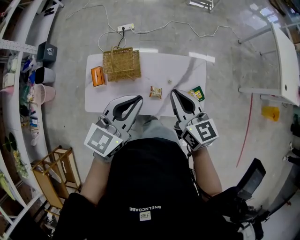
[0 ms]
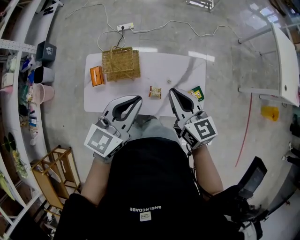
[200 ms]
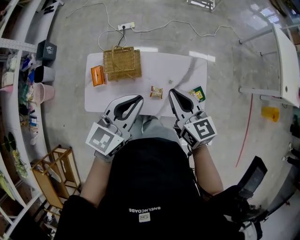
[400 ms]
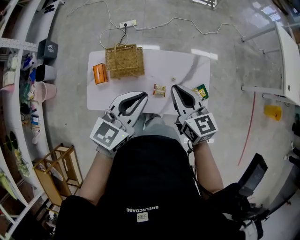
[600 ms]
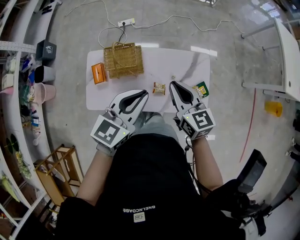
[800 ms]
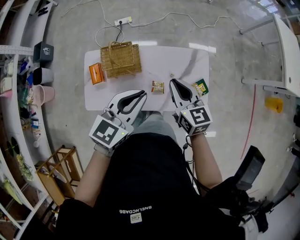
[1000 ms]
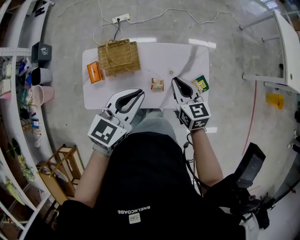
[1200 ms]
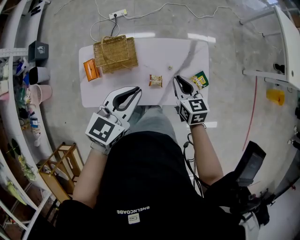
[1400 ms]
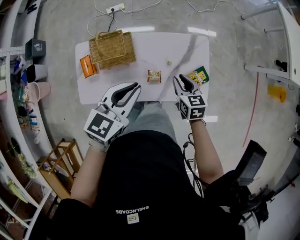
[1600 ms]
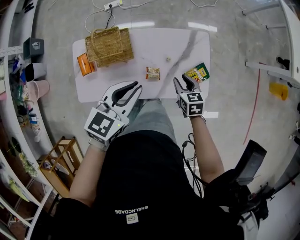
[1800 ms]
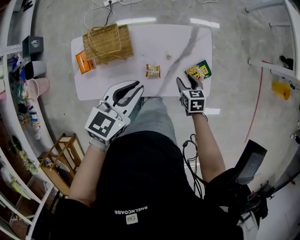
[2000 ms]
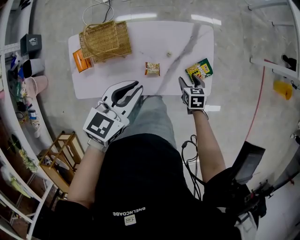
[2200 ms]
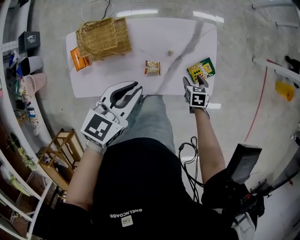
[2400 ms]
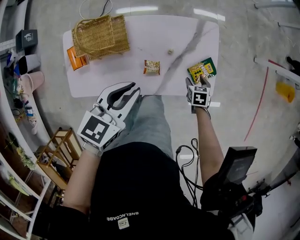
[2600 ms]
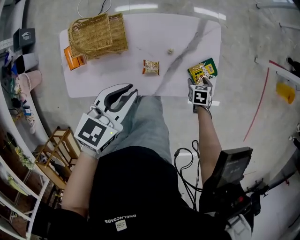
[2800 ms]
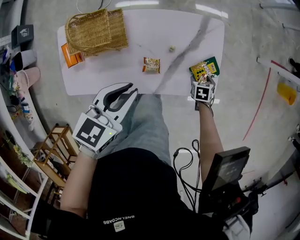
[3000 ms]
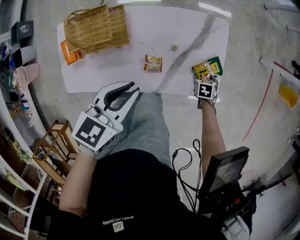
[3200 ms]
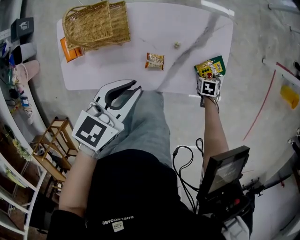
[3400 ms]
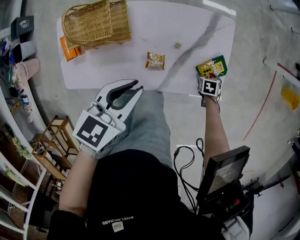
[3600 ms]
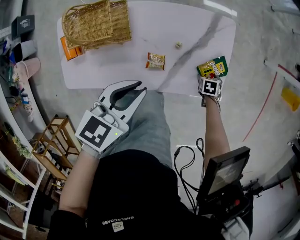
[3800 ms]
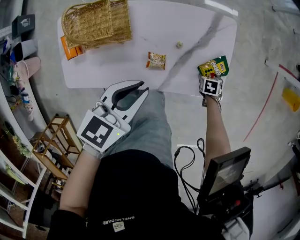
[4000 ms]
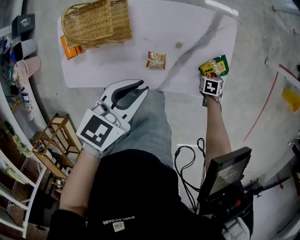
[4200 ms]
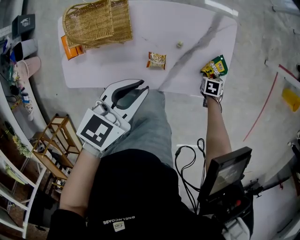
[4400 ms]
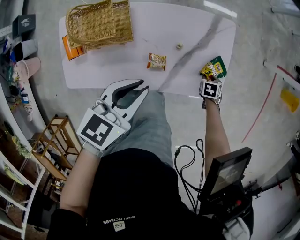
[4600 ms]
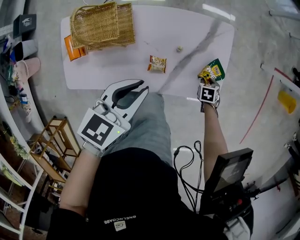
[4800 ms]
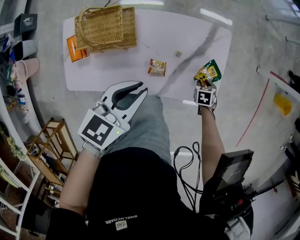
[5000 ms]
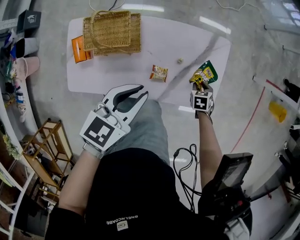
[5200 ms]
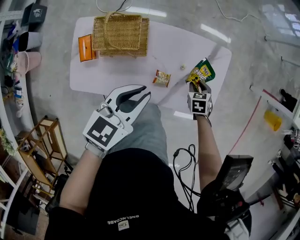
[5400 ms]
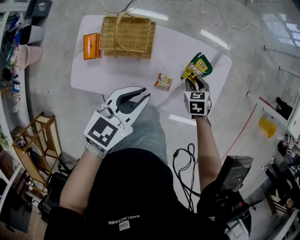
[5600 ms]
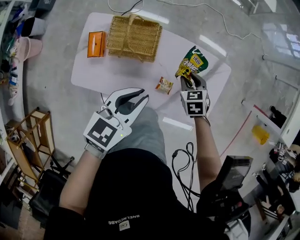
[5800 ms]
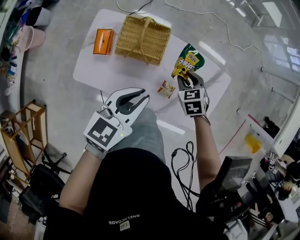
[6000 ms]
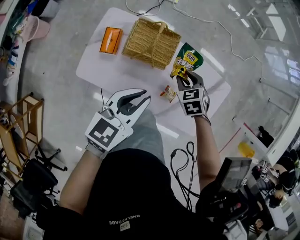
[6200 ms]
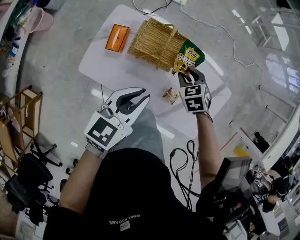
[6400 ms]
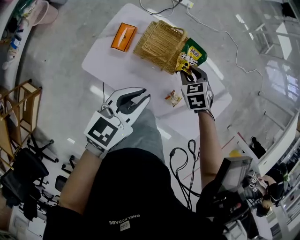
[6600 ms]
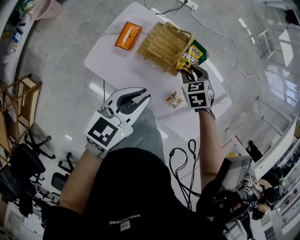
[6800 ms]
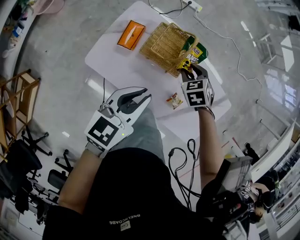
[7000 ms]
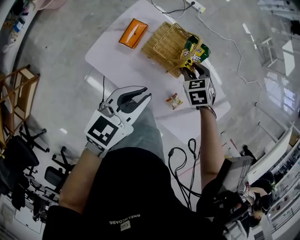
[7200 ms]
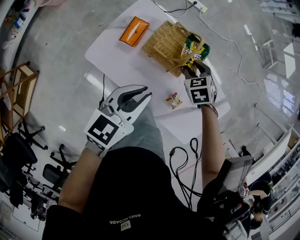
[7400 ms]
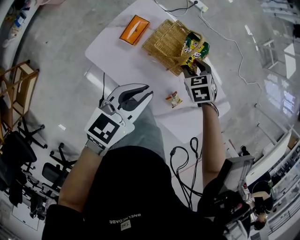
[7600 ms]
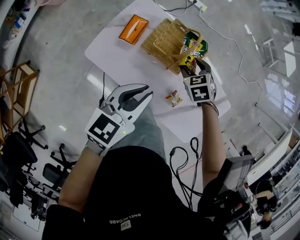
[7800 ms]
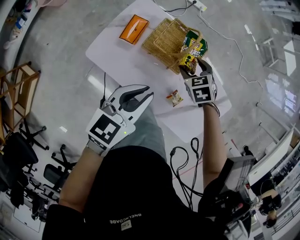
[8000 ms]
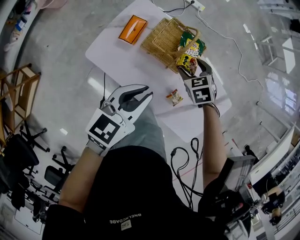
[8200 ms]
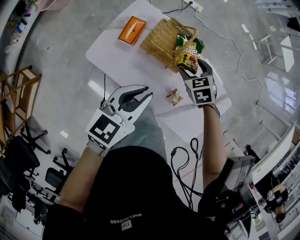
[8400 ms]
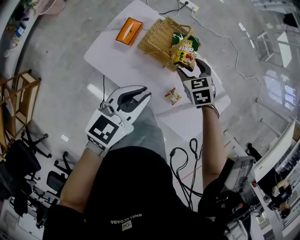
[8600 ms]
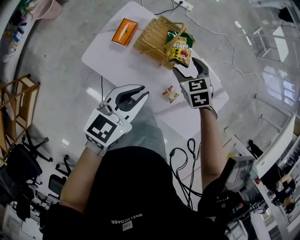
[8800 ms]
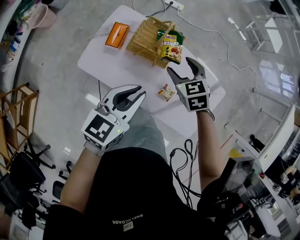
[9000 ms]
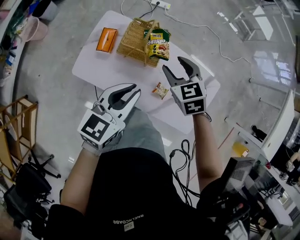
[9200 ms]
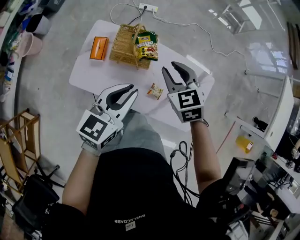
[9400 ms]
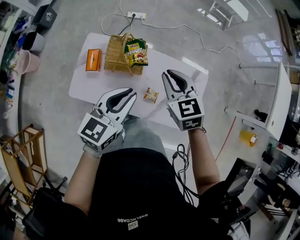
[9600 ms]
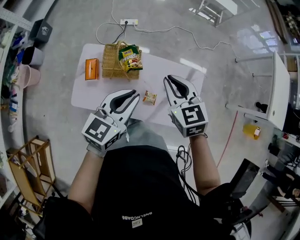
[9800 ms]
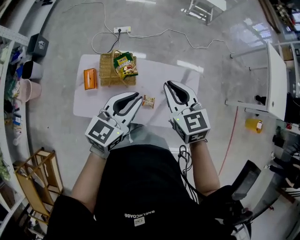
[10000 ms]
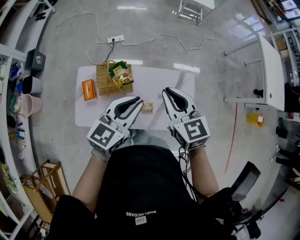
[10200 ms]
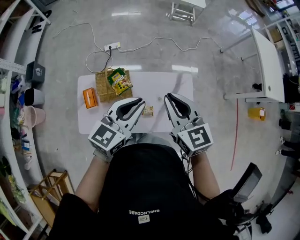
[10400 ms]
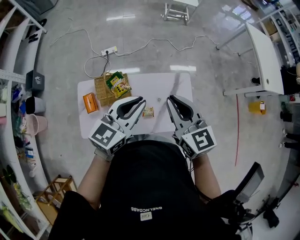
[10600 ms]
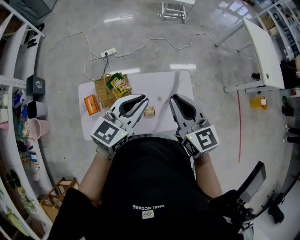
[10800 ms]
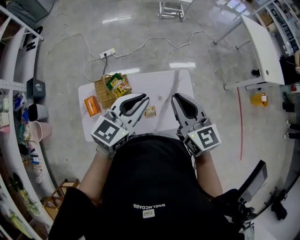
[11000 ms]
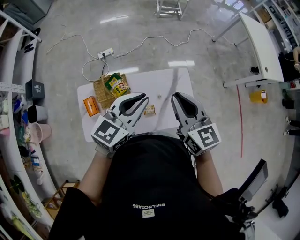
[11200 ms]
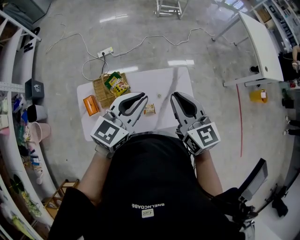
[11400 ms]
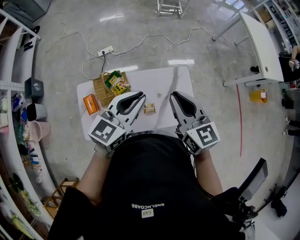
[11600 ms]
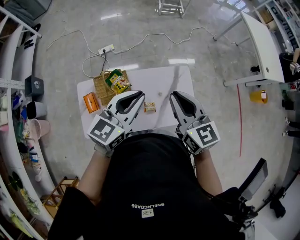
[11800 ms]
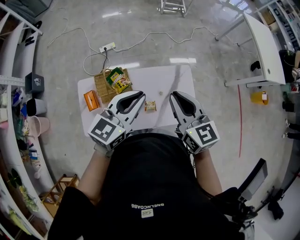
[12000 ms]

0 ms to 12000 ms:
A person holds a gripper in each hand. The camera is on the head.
0 ms to 1600 ms: The left gripper heads downward, covering approximately 10 cm. Meanwhile the right gripper is displaced downward by approximately 25 cm, and changes its angle by about 30 degrees.
1600 ms to 3000 ms: The right gripper is displaced downward by roughly 30 cm, points its fingers some 40 degrees further downward, and opens its fingers, while the left gripper is displaced downward by about 15 cm.
3000 ms to 4400 ms: The right gripper changes place by approximately 5 cm, and closes up.
4400 ms to 6000 ms: The right gripper changes place by roughly 40 cm, and twists approximately 40 degrees counterclockwise, seen from behind. Meanwhile the left gripper ends up roughly 15 cm from where it was, and swivels about 20 degrees.
6000 ms to 7600 ms: The left gripper moves to the left, approximately 10 cm; the right gripper travels to the left and forward by roughly 15 cm, and turns by approximately 20 degrees.
7600 ms to 9000 ms: The right gripper is displaced upward and backward by about 15 cm, and opens up; the left gripper shifts about 5 cm backward.
9000 ms to 10400 ms: The right gripper goes approximately 30 cm upward, tilts its fingers approximately 30 degrees upward, and closes up. The left gripper shifts about 15 cm upward, and changes its angle by about 30 degrees.
10400 ms to 12000 ms: The grippers stay close to where they were, moving slightly.

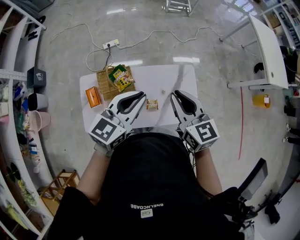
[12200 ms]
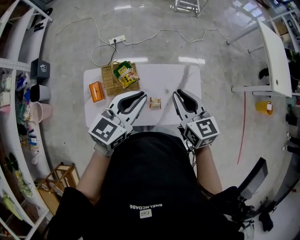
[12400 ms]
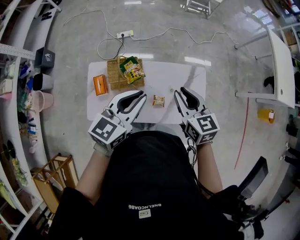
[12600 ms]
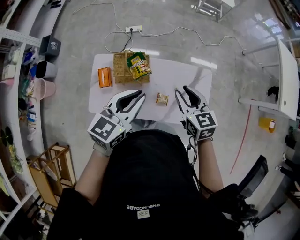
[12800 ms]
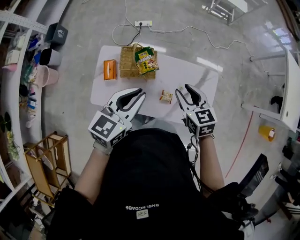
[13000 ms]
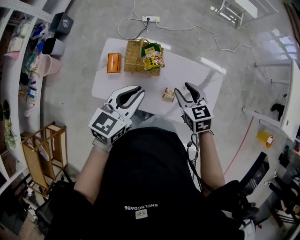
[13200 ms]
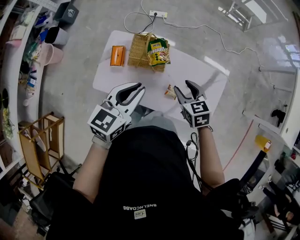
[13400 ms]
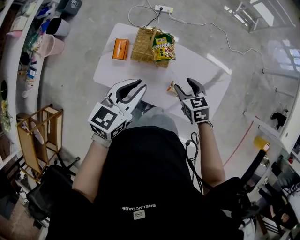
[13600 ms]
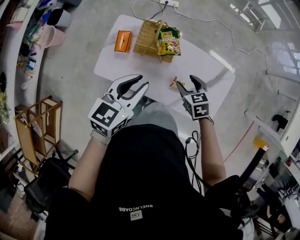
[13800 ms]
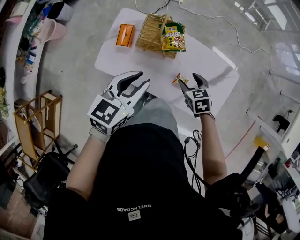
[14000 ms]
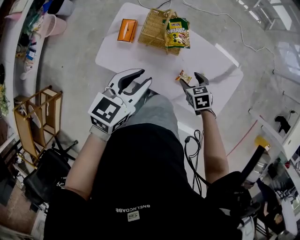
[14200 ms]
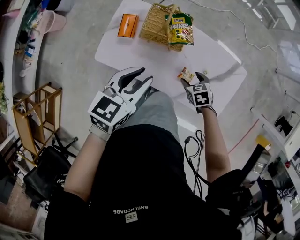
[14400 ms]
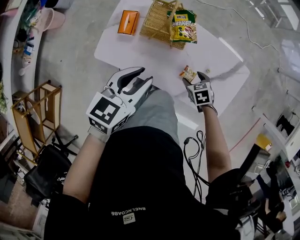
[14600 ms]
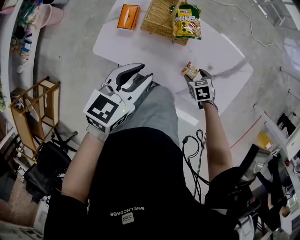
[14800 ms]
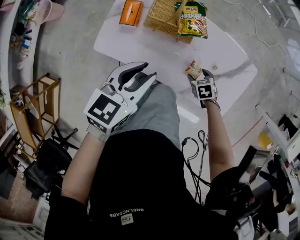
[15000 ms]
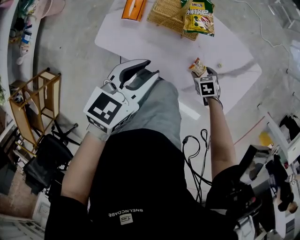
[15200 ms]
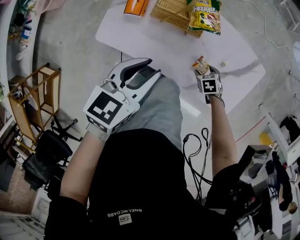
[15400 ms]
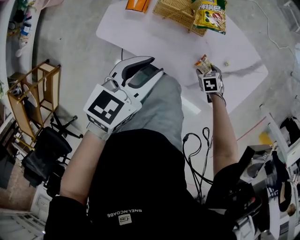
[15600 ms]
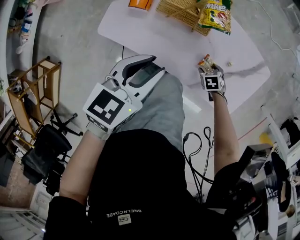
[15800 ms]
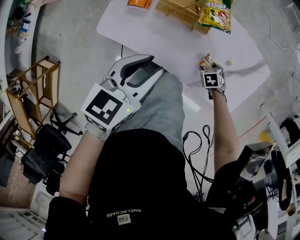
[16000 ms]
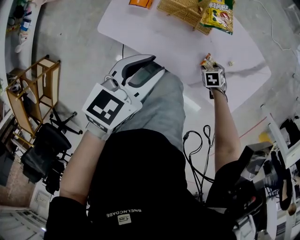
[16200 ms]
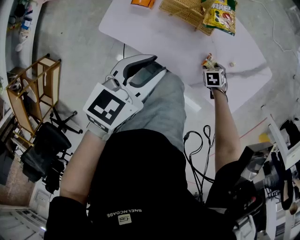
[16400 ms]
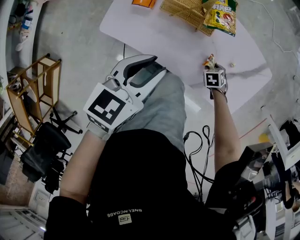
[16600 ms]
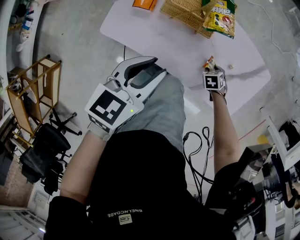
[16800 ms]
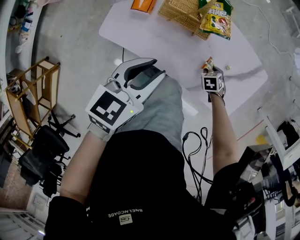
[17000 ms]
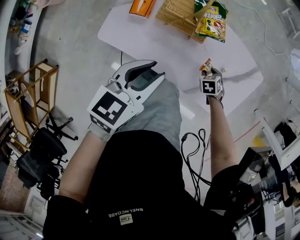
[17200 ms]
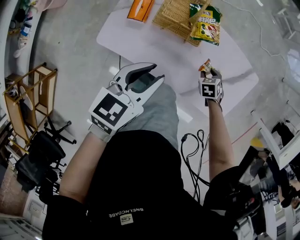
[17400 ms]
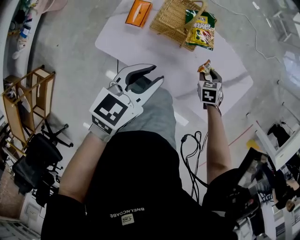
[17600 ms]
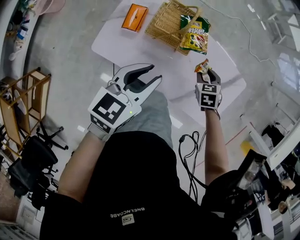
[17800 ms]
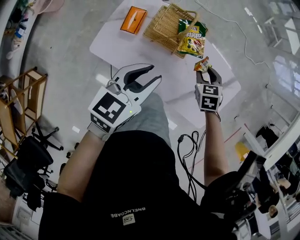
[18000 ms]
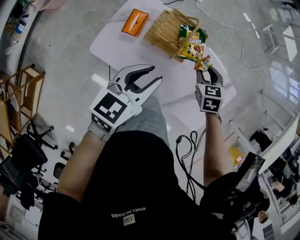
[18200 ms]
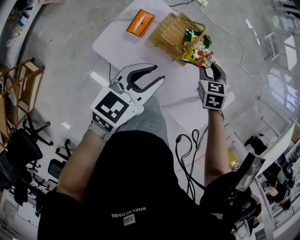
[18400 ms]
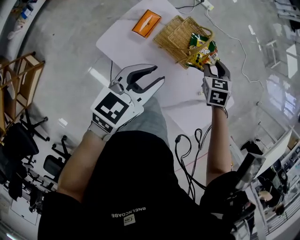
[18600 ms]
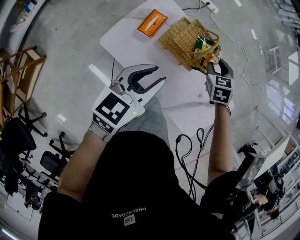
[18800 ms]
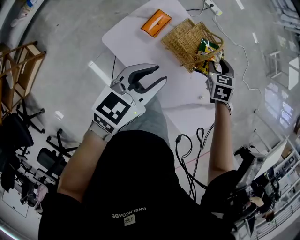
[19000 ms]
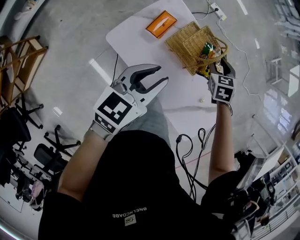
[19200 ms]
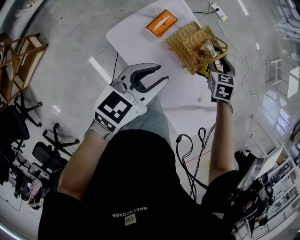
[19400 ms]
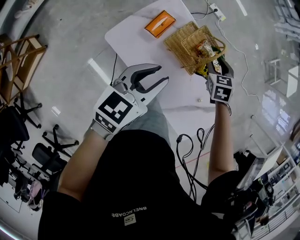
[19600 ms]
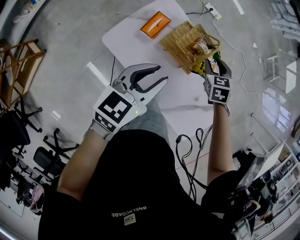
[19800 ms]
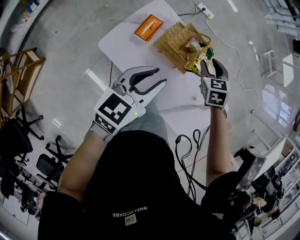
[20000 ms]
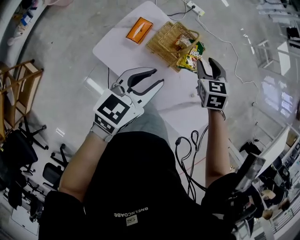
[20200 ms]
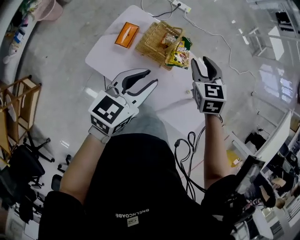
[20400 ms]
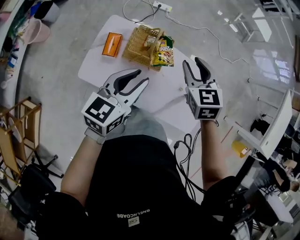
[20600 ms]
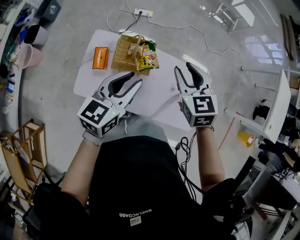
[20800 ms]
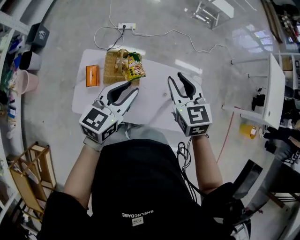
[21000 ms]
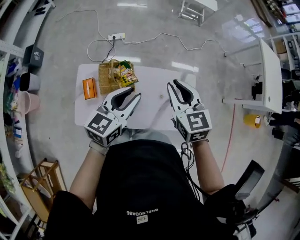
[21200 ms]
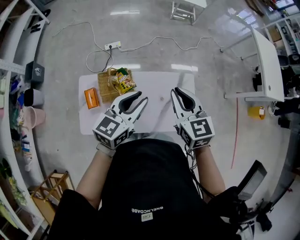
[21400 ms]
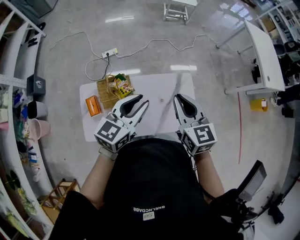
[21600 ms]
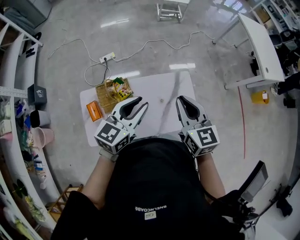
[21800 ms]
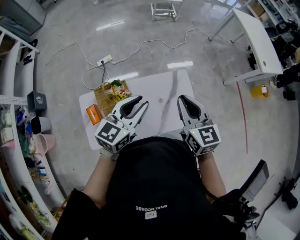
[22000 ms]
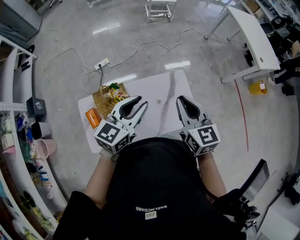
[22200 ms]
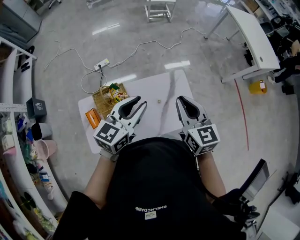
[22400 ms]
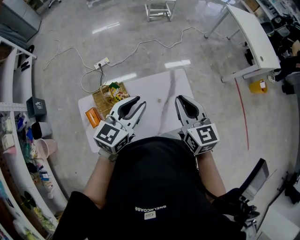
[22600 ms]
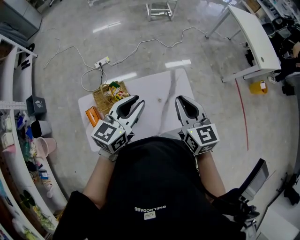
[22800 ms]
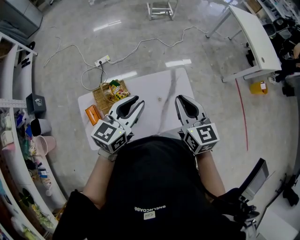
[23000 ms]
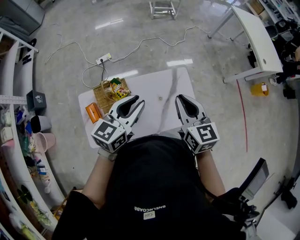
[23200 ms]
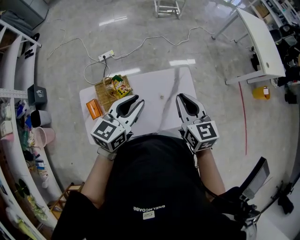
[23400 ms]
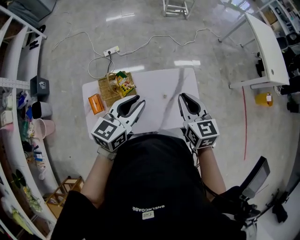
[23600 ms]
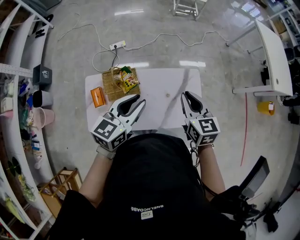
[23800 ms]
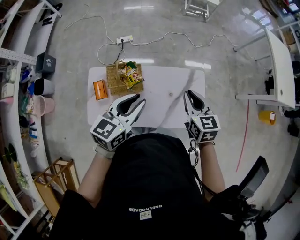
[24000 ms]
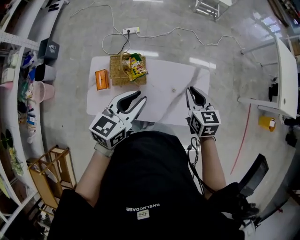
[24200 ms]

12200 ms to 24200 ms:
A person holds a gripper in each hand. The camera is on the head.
12200 ms to 13800 ms: The left gripper moves roughly 20 cm, and swivels roughly 30 degrees. Meanwhile the right gripper travels downward by approximately 30 cm, points its fingers some 30 degrees further downward, and opens.
13800 ms to 15200 ms: The left gripper moves downward, approximately 10 cm, while the right gripper travels downward by roughly 25 cm, and rotates approximately 20 degrees.
15200 ms to 16600 ms: The right gripper moves downward, approximately 5 cm.
16600 ms to 18200 ms: The left gripper shifts by about 10 cm, while the right gripper goes approximately 25 cm upward, and rotates roughly 30 degrees.
18200 ms to 19800 ms: The left gripper heads to the left, covering roughly 5 cm, while the right gripper travels to the left and forward by roughly 10 cm.
19800 ms to 21200 ms: The right gripper goes some 30 cm upward, and changes its angle by roughly 40 degrees; the left gripper shifts by roughly 25 cm, and rotates roughly 40 degrees.
21200 ms to 22600 ms: The two grippers go some 10 cm to the right. The right gripper turns by approximately 30 degrees.
22600 ms to 24200 ms: The right gripper is displaced downward by approximately 15 cm, and turns by approximately 20 degrees. The left gripper moves to the left, roughly 5 cm, and turns by roughly 20 degrees.
